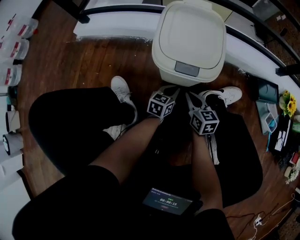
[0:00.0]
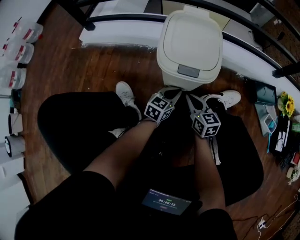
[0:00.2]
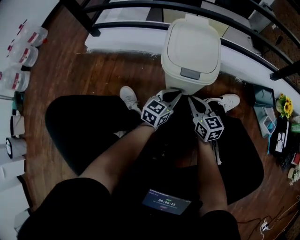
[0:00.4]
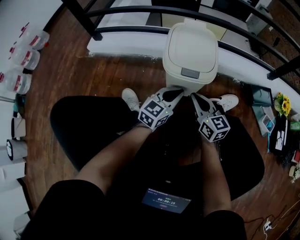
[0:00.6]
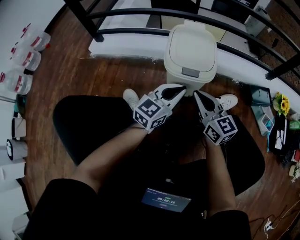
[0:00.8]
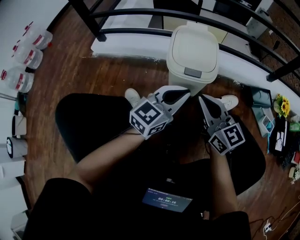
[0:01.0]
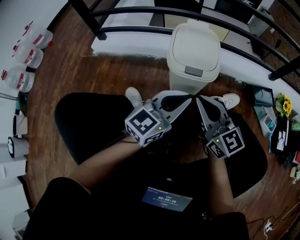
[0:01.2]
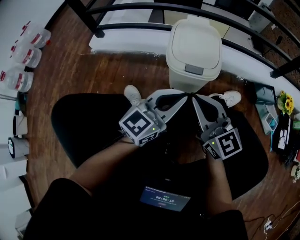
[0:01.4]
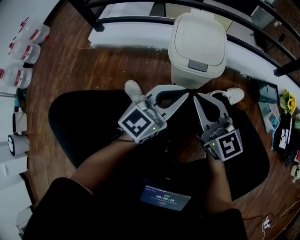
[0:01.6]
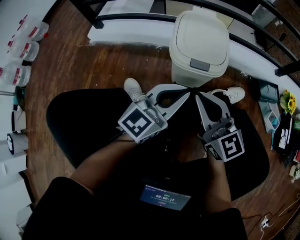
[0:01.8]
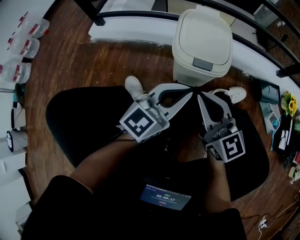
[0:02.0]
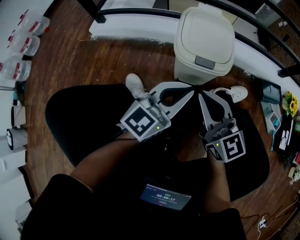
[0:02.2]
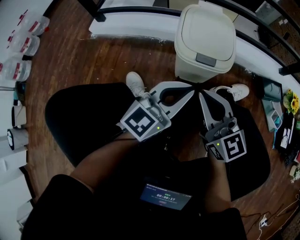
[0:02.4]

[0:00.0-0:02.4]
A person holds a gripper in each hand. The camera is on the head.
0:00.0 to 0:01.2: Both grippers move upward, some 35 cm. The right gripper swivels some 30 degrees, while the left gripper changes its angle by about 40 degrees.
0:01.2 to 0:02.4: There are only small adjustments of the grippers.

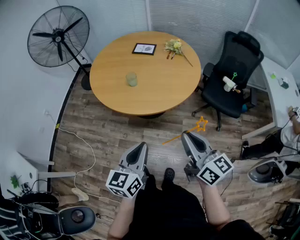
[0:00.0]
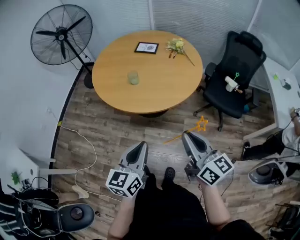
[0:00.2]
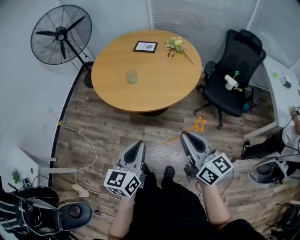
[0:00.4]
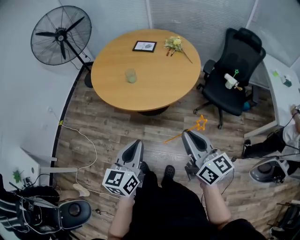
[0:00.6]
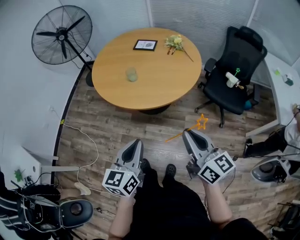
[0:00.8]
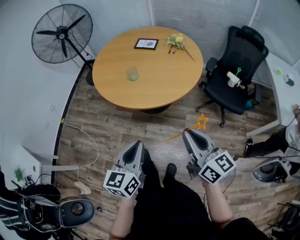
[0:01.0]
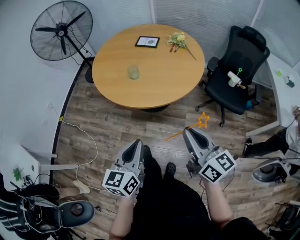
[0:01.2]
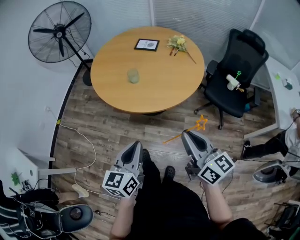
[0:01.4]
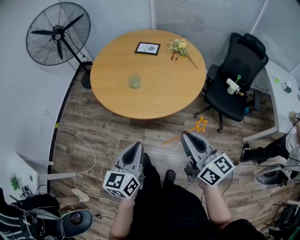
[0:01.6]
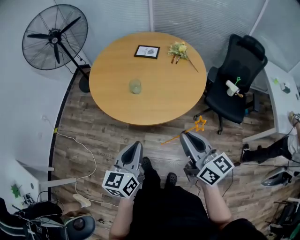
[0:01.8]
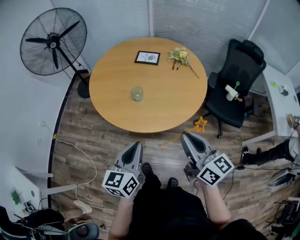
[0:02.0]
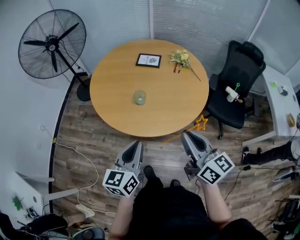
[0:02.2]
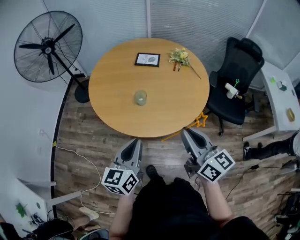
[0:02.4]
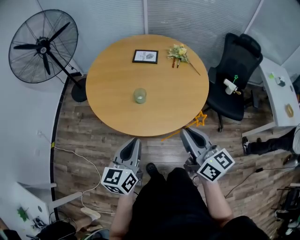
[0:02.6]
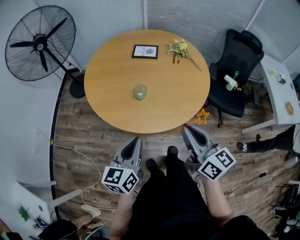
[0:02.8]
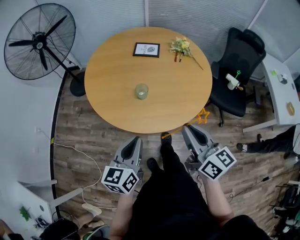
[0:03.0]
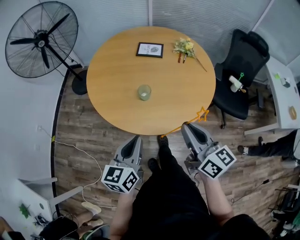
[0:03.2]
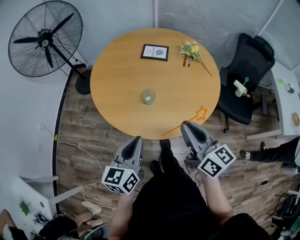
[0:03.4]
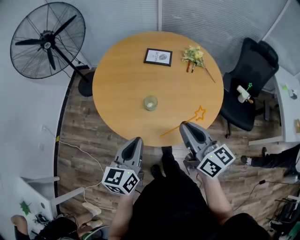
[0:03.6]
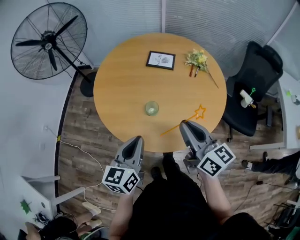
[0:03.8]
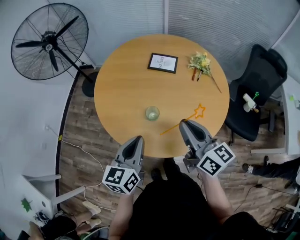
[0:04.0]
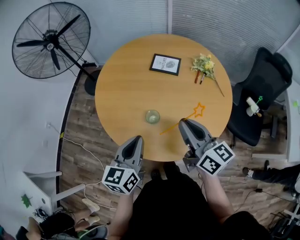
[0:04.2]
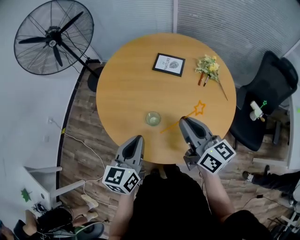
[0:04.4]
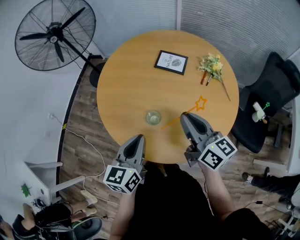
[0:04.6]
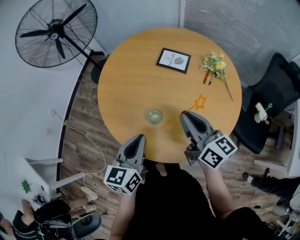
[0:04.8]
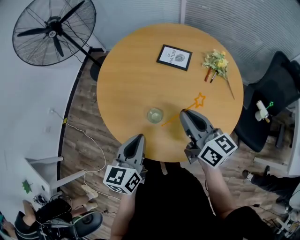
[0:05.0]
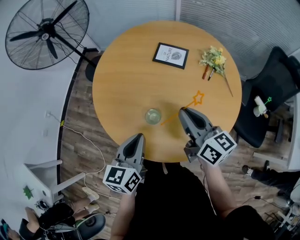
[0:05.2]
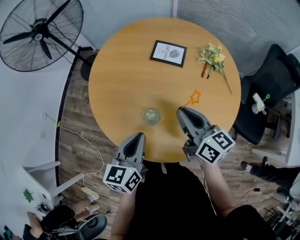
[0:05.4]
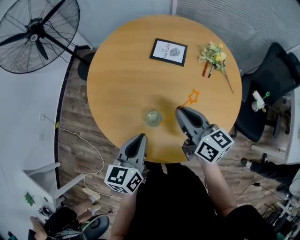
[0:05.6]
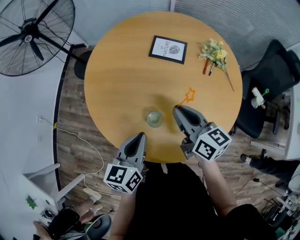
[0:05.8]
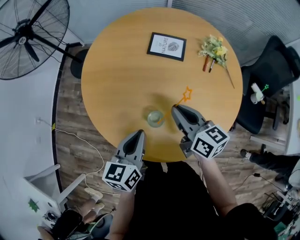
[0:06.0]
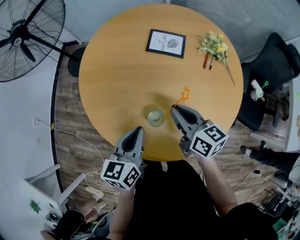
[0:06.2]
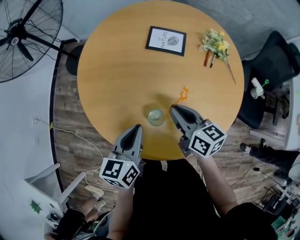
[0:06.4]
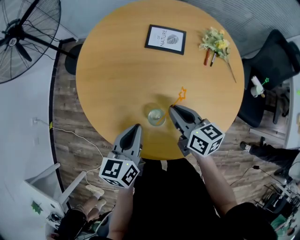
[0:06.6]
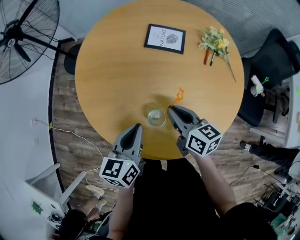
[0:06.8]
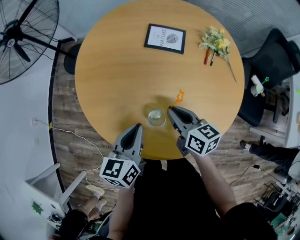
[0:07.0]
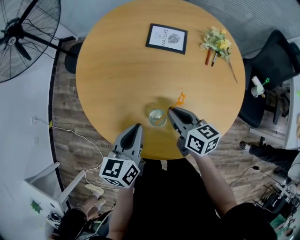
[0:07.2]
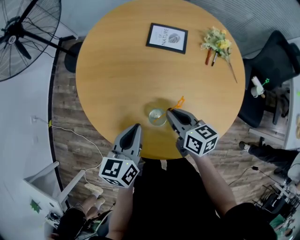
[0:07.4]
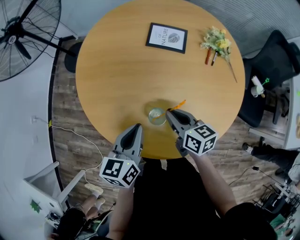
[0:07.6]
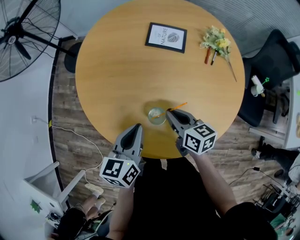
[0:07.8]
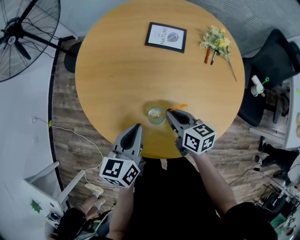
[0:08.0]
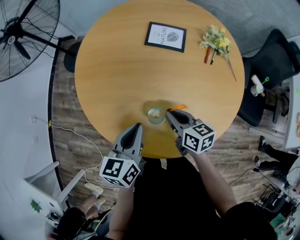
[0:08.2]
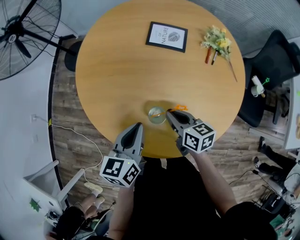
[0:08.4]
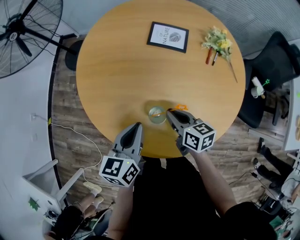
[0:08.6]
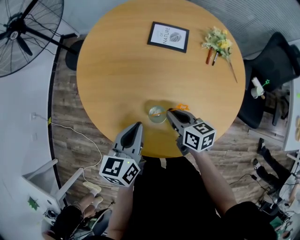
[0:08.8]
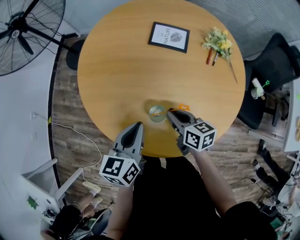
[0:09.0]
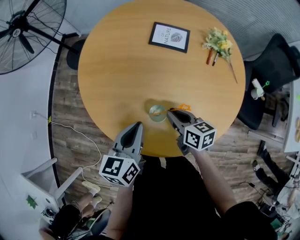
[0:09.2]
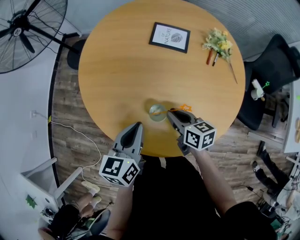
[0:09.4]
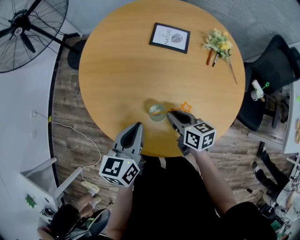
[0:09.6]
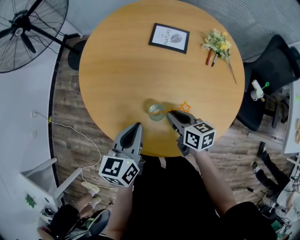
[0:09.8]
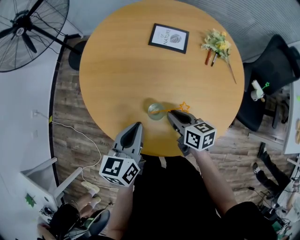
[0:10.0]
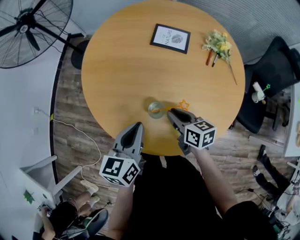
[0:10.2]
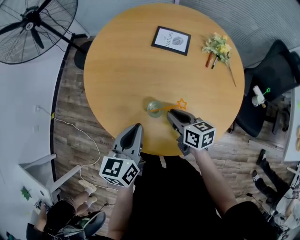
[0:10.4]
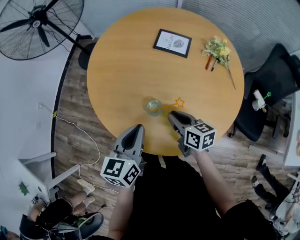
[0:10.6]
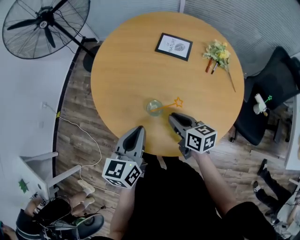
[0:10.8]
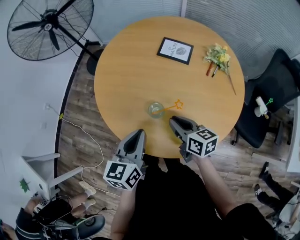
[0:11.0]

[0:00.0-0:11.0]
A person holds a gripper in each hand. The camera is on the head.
0:00.0 to 0:01.6: The grippers both shift forward by approximately 5 cm.
0:01.6 to 0:03.2: Both grippers travel together forward and to the left, approximately 20 cm.
0:03.2 to 0:04.8: The two grippers go approximately 20 cm forward.
0:04.8 to 0:06.2: The left gripper travels forward and downward by approximately 10 cm; the right gripper goes roughly 15 cm downward, forward and to the left.
0:06.2 to 0:07.8: The right gripper goes approximately 10 cm downward.
0:07.8 to 0:09.4: There are only small adjustments of the grippers.
0:09.4 to 0:11.0: The right gripper travels upward and backward by approximately 10 cm; the left gripper travels backward by roughly 10 cm.

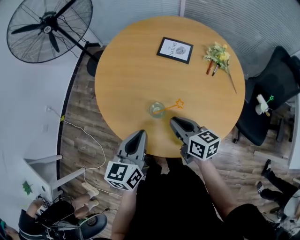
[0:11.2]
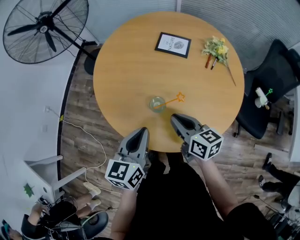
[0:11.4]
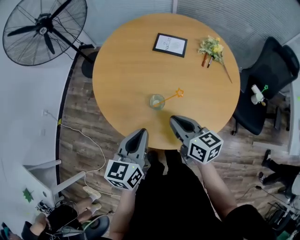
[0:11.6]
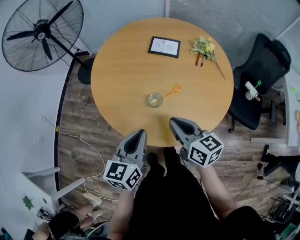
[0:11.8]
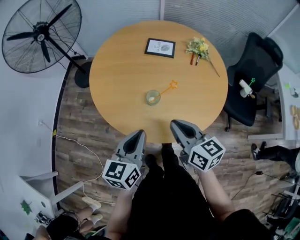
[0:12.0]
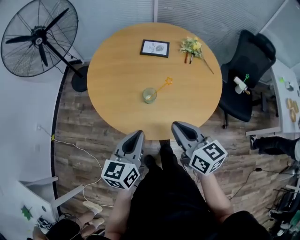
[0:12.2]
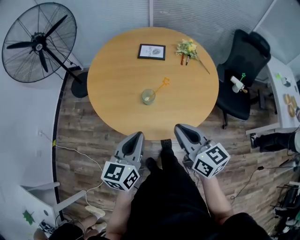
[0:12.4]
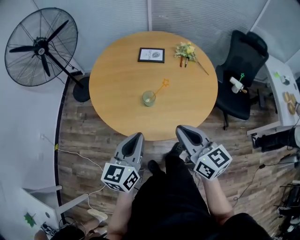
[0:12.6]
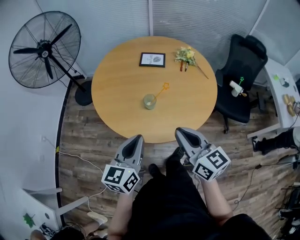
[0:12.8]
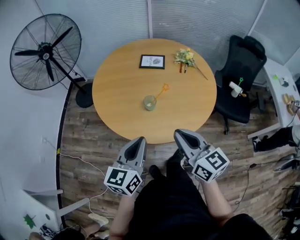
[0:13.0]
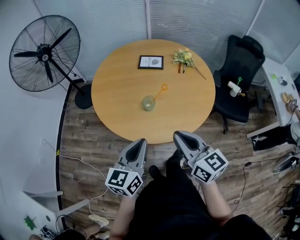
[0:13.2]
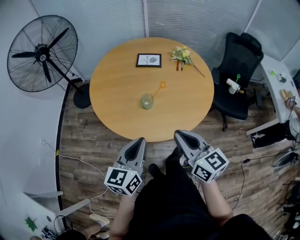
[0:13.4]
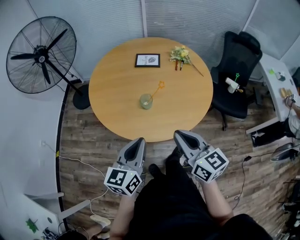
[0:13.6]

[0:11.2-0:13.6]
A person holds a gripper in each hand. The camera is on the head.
0:11.2 to 0:12.4: The left gripper heads backward, covering roughly 15 cm; the right gripper shifts some 25 cm backward and upward, and turns by approximately 20 degrees.
0:12.4 to 0:13.6: The right gripper heads backward, covering about 5 cm.

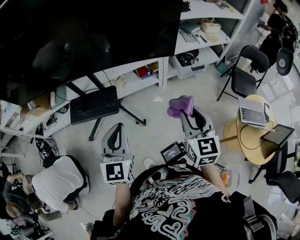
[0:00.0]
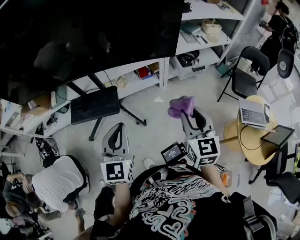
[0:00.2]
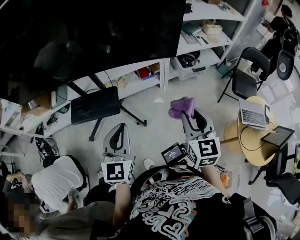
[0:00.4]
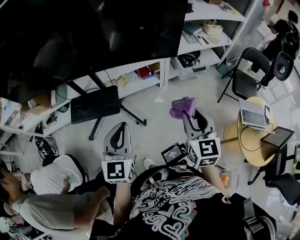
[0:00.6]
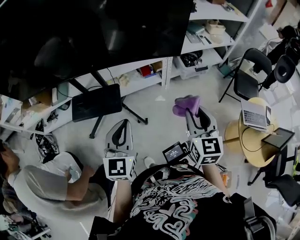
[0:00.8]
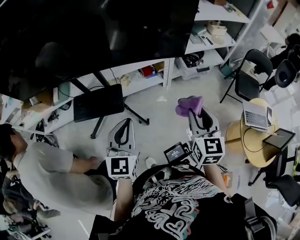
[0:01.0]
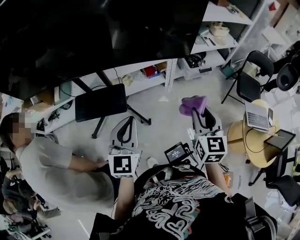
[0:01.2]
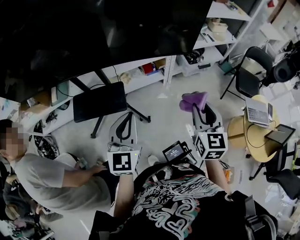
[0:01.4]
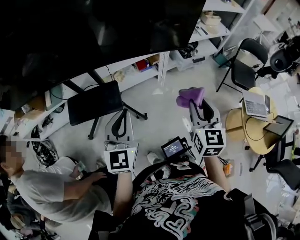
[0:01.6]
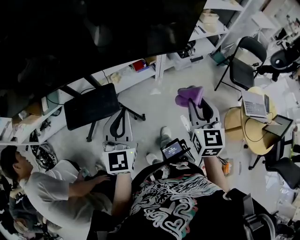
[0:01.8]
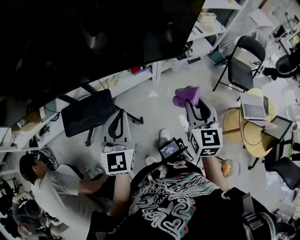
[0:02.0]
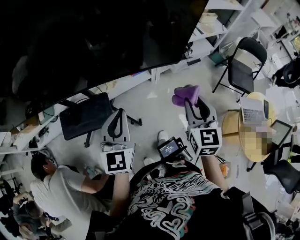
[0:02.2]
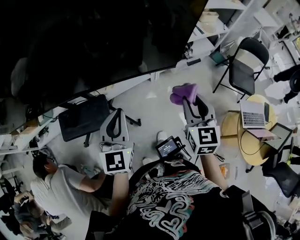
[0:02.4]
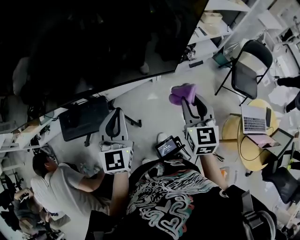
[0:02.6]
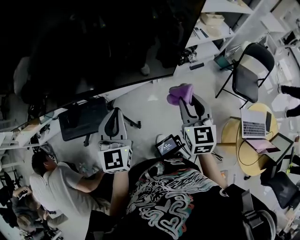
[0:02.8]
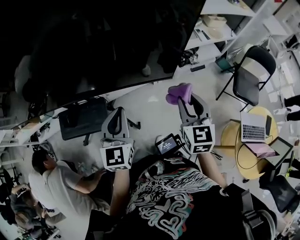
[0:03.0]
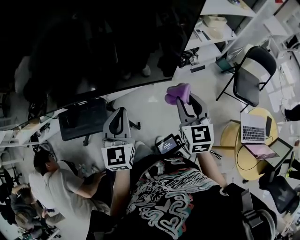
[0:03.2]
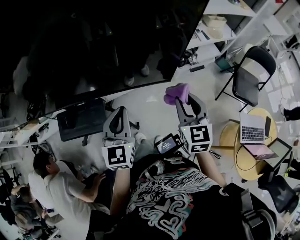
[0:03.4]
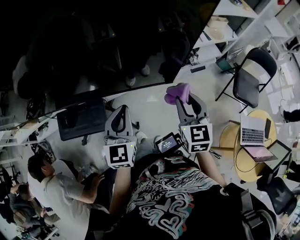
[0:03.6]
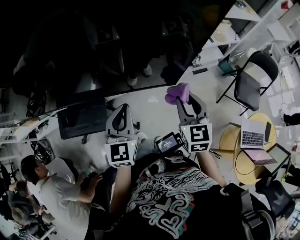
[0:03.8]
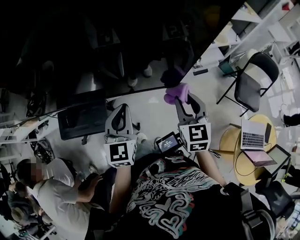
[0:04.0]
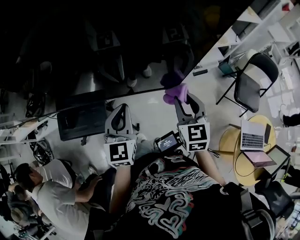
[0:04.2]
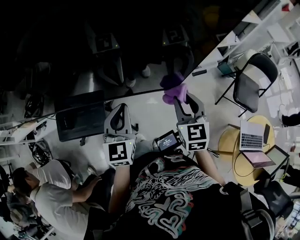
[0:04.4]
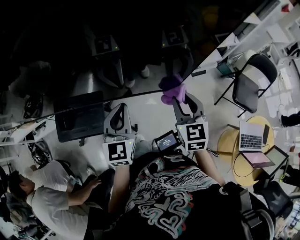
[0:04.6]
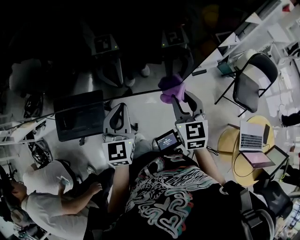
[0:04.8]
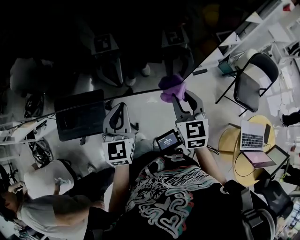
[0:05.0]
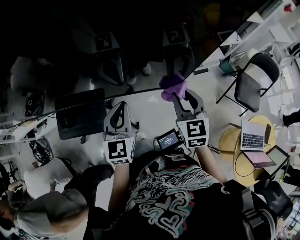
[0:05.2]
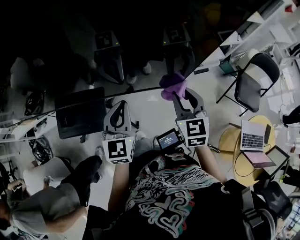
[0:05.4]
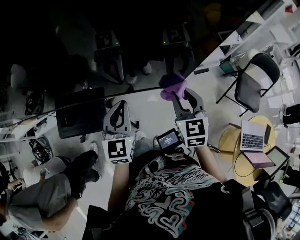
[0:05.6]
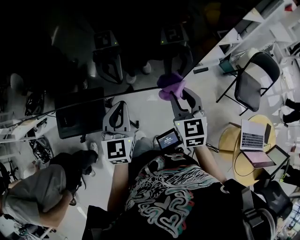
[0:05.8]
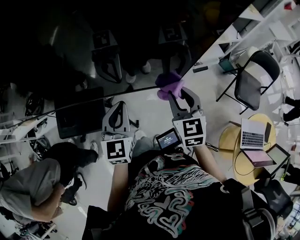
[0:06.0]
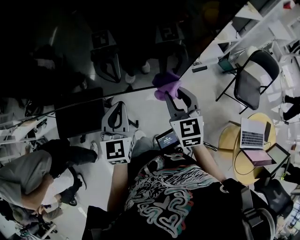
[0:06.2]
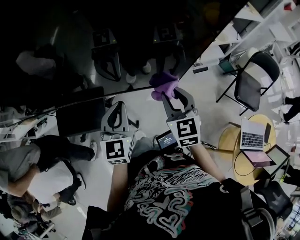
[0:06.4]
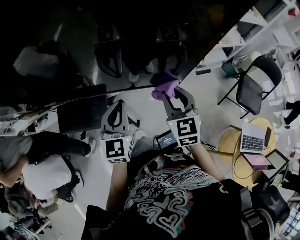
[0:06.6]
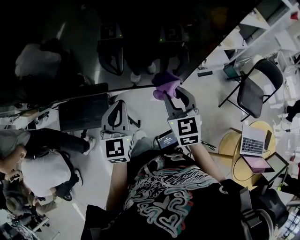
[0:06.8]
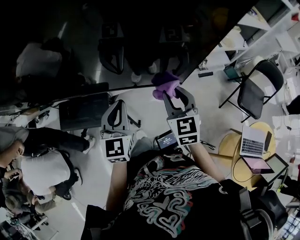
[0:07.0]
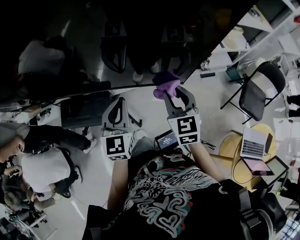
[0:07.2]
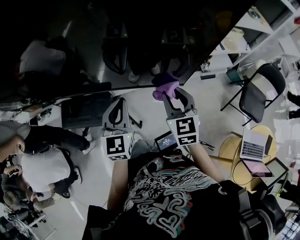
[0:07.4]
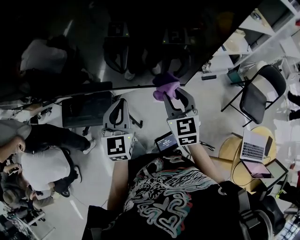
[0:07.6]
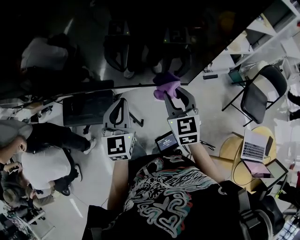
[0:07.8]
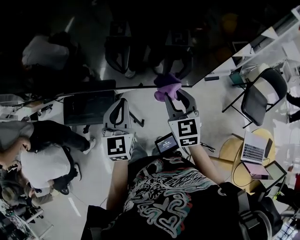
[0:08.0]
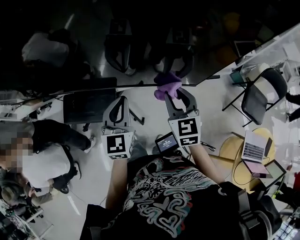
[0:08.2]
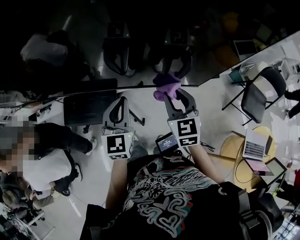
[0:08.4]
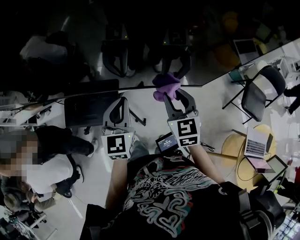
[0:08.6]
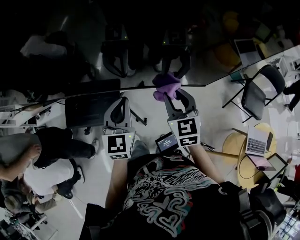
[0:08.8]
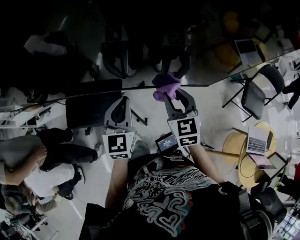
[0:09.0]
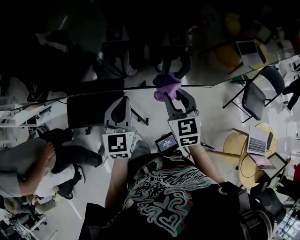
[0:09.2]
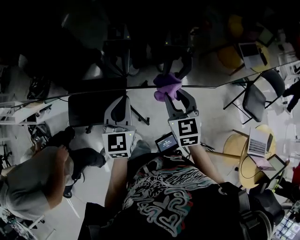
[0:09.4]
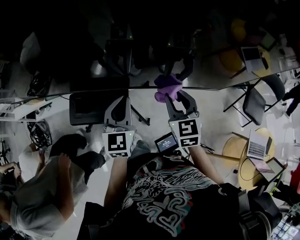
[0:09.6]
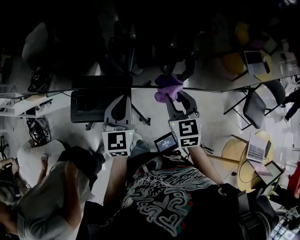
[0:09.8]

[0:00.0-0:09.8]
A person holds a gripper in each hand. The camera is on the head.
0:00.0 to 0:01.4: Both grippers move to the left, some 5 cm.
0:01.4 to 0:02.8: Both grippers travel together forward, roughly 25 cm.
0:02.8 to 0:04.2: Both grippers move forward, some 5 cm.
0:04.2 to 0:07.0: The grippers stay close to where they were, moving slightly.
0:07.0 to 0:08.4: The two grippers go approximately 5 cm to the left.
0:08.4 to 0:09.8: Both grippers travel together to the left, about 15 cm.
